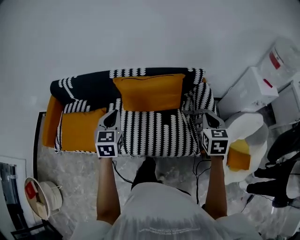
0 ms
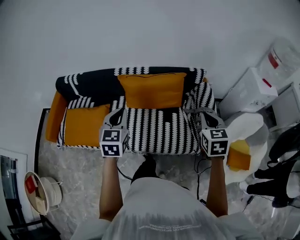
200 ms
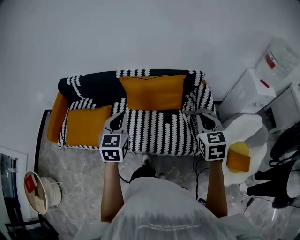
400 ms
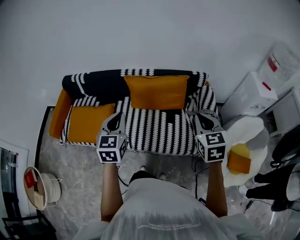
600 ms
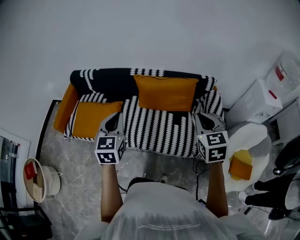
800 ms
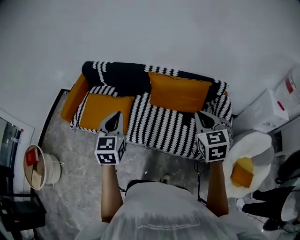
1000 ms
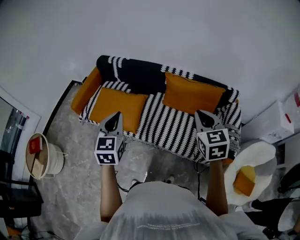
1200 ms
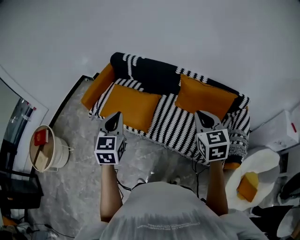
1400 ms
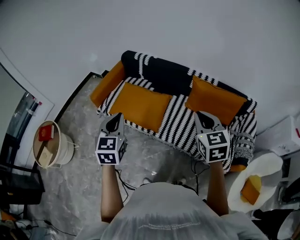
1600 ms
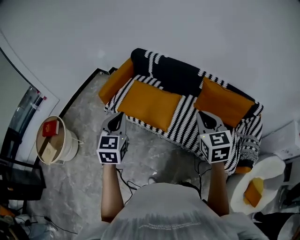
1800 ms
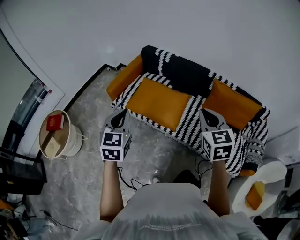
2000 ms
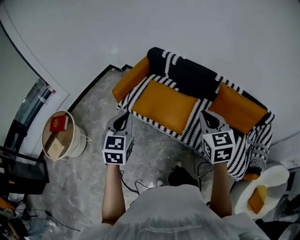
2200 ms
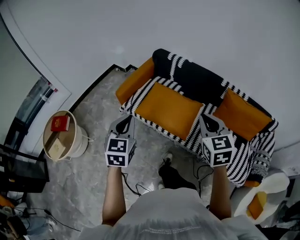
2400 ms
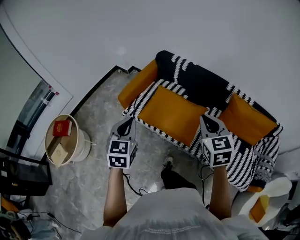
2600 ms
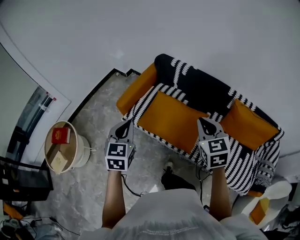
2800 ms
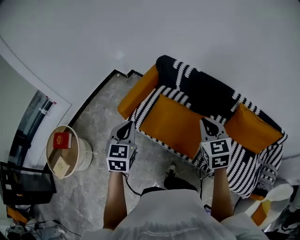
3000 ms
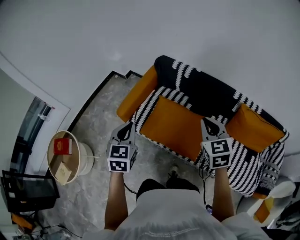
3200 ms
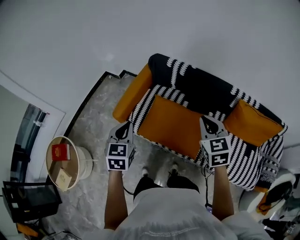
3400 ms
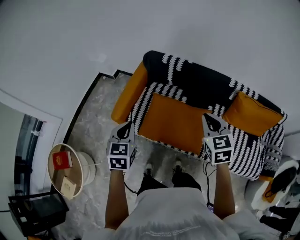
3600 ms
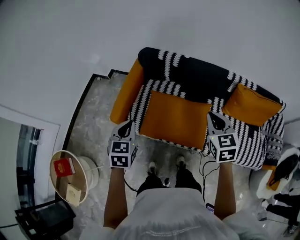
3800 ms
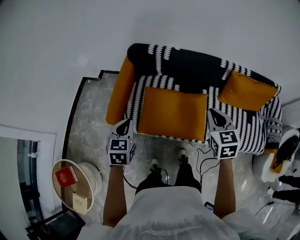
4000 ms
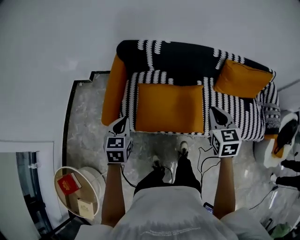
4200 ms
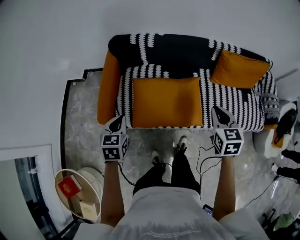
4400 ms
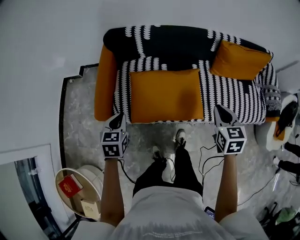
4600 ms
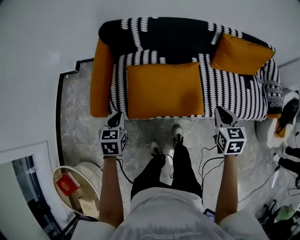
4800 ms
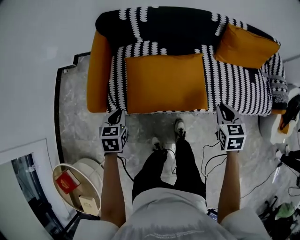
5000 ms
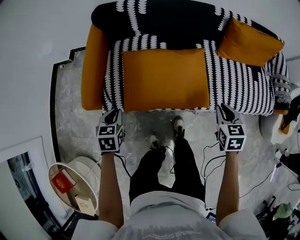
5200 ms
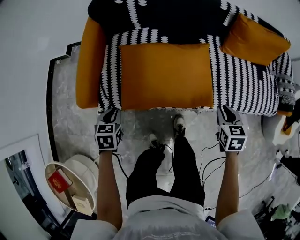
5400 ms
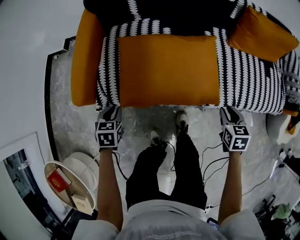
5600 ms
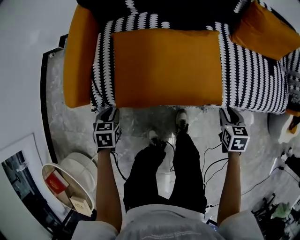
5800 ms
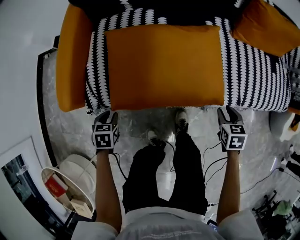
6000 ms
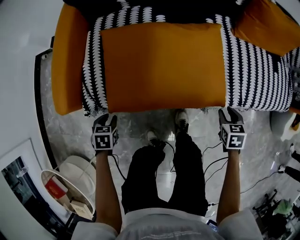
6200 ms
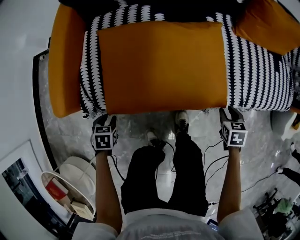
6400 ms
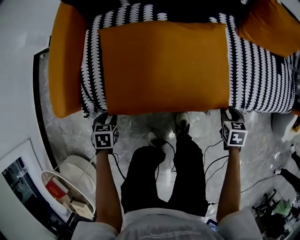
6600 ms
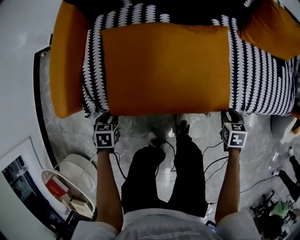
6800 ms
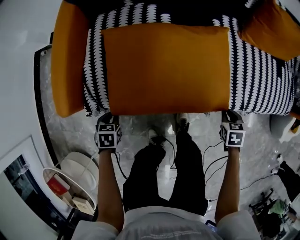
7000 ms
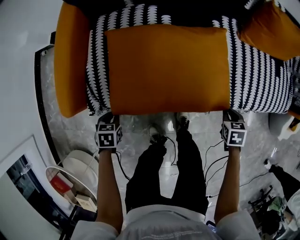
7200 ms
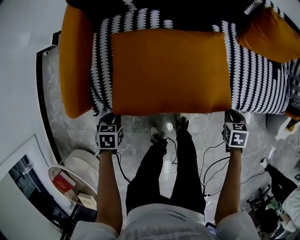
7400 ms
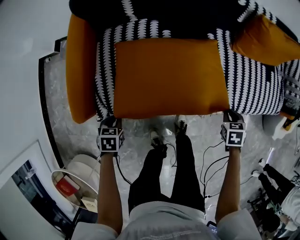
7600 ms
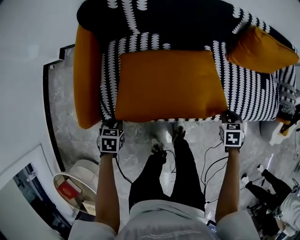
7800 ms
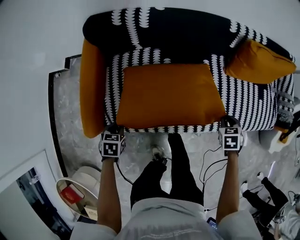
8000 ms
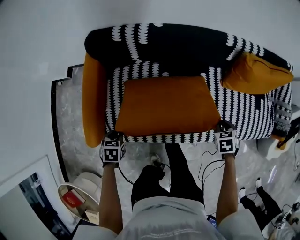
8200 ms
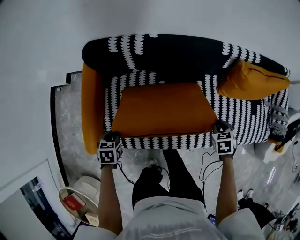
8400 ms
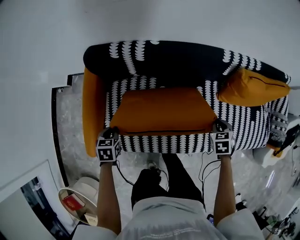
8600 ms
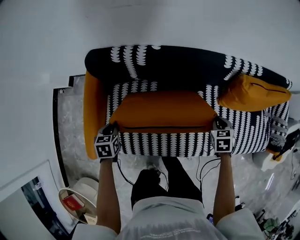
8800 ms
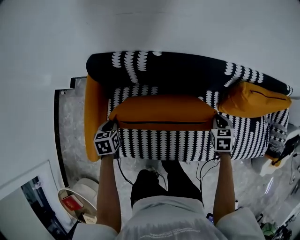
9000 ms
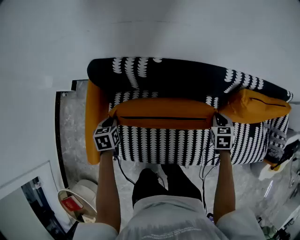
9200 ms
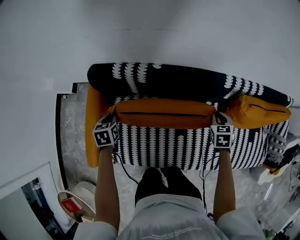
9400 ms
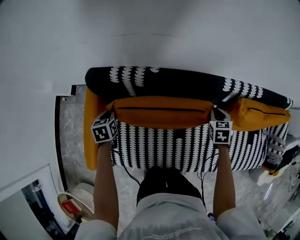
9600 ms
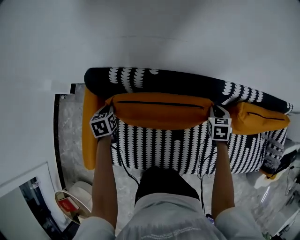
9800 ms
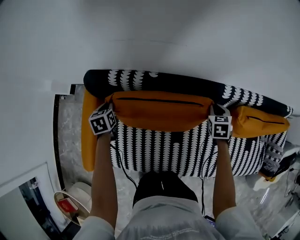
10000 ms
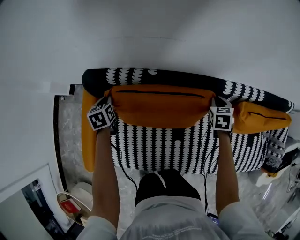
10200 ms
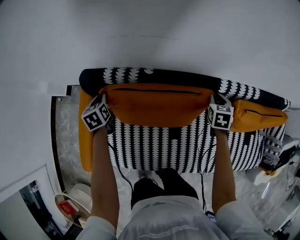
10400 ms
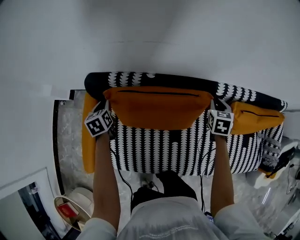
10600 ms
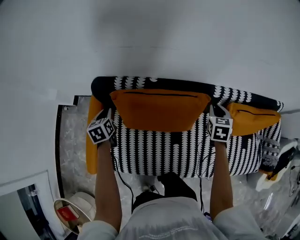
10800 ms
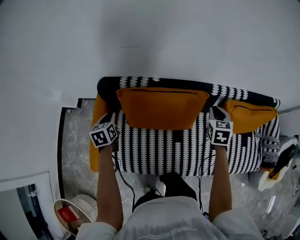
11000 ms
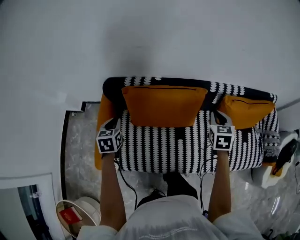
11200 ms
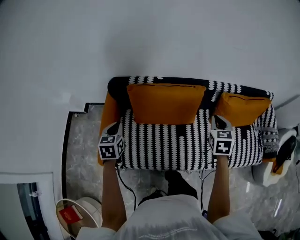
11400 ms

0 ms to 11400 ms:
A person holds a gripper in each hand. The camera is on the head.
0 ms to 1400 ms: The left gripper shifts by approximately 40 cm, and rotates some 20 degrees, while the right gripper moves some 40 cm, and changes its angle by approximately 40 degrees.
1400 ms to 2800 ms: Both grippers travel together to the left and forward, approximately 35 cm.
2800 ms to 4200 ms: The left gripper shifts by roughly 25 cm, and turns by approximately 30 degrees. The right gripper travels downward by approximately 10 cm, and swivels about 30 degrees.
4200 ms to 5600 ms: The grippers both shift downward by approximately 35 cm. The left gripper turns by roughly 20 degrees; the right gripper turns by about 20 degrees, and opens up.
5600 ms to 7200 ms: The two grippers go some 10 cm downward. The right gripper swivels some 20 degrees.
7200 ms to 8600 ms: The left gripper shifts by approximately 30 cm. The right gripper moves about 30 cm.
8600 ms to 10000 ms: Both grippers travel together forward, roughly 25 cm. The left gripper swivels about 20 degrees.
10000 ms to 11400 ms: The right gripper heads upward and backward, covering approximately 35 cm, and swivels roughly 20 degrees. The left gripper heads backward and upward, covering some 30 cm, and rotates approximately 20 degrees.

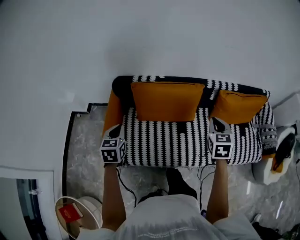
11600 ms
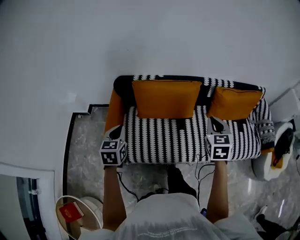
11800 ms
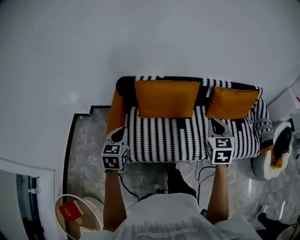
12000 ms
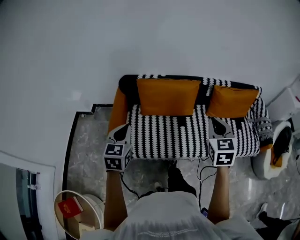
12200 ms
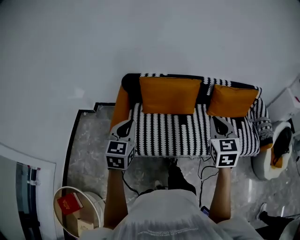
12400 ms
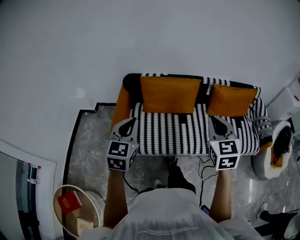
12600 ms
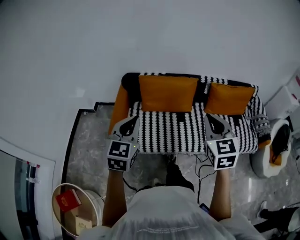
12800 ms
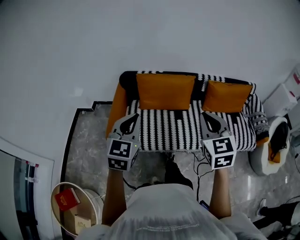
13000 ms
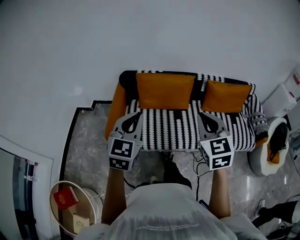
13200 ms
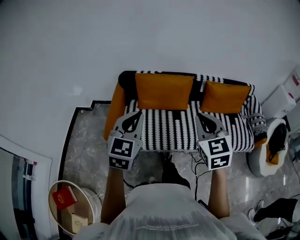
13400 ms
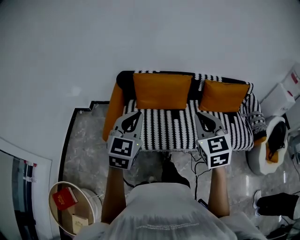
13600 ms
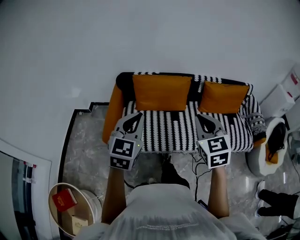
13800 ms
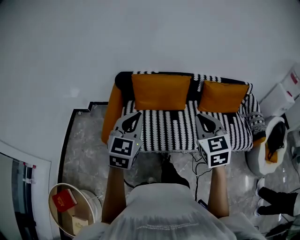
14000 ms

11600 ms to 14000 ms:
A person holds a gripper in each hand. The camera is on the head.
11600 ms to 12800 ms: The left gripper is displaced backward, upward and to the right by approximately 30 cm, and rotates about 30 degrees. The right gripper goes approximately 30 cm backward and upward, and changes its angle by some 20 degrees.
12800 ms to 14000 ms: The left gripper changes place by approximately 5 cm.

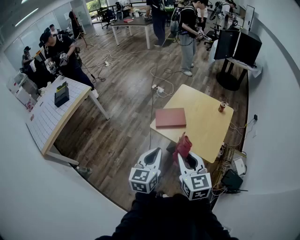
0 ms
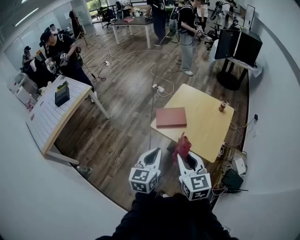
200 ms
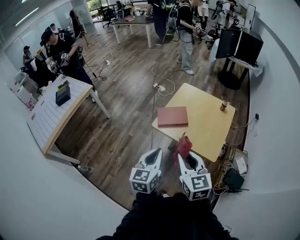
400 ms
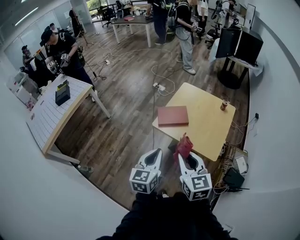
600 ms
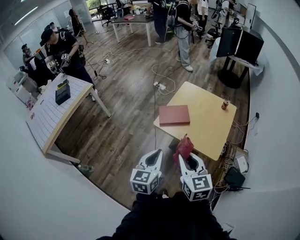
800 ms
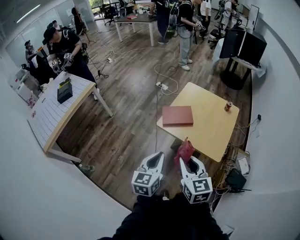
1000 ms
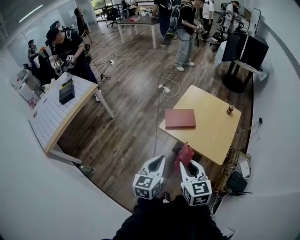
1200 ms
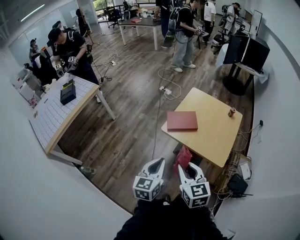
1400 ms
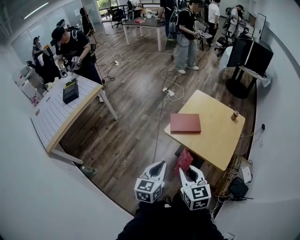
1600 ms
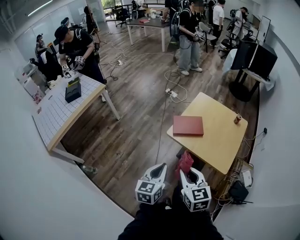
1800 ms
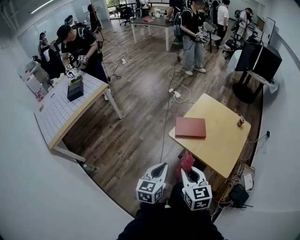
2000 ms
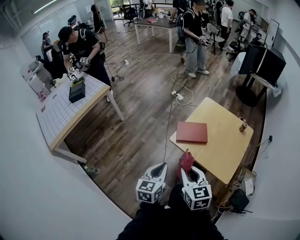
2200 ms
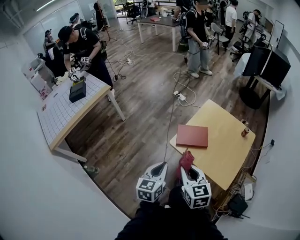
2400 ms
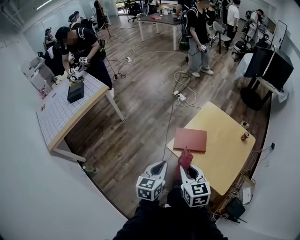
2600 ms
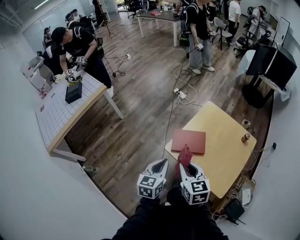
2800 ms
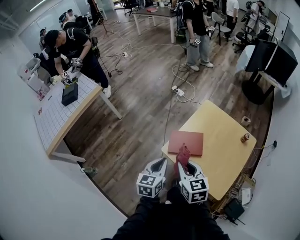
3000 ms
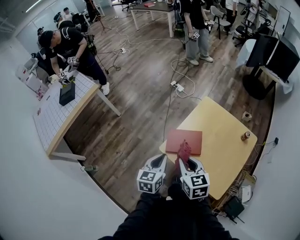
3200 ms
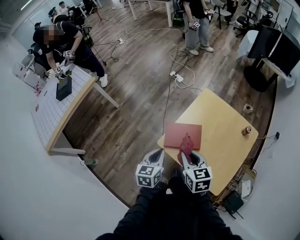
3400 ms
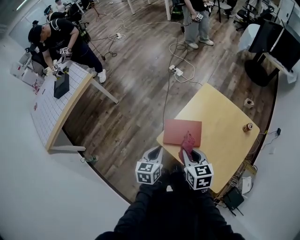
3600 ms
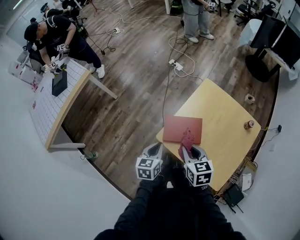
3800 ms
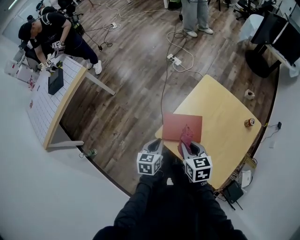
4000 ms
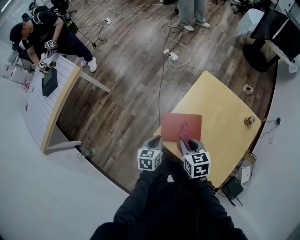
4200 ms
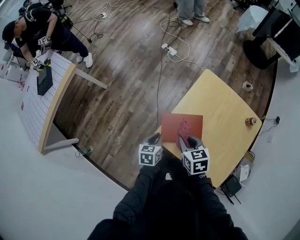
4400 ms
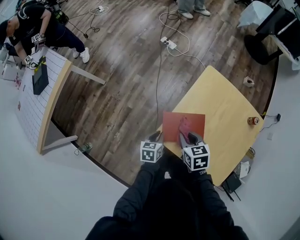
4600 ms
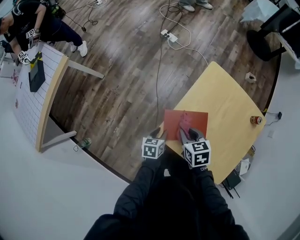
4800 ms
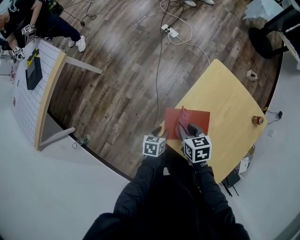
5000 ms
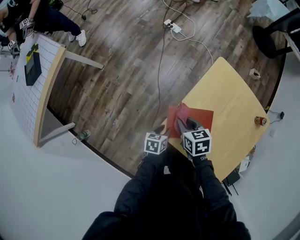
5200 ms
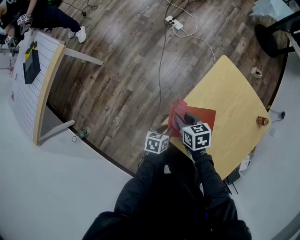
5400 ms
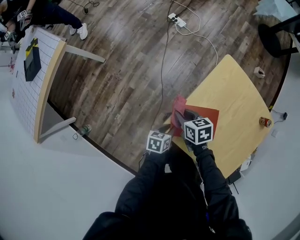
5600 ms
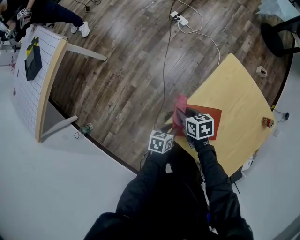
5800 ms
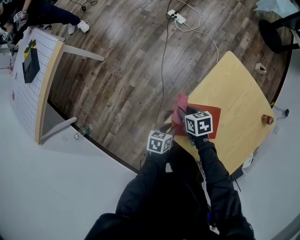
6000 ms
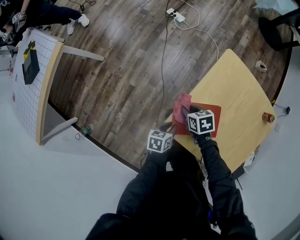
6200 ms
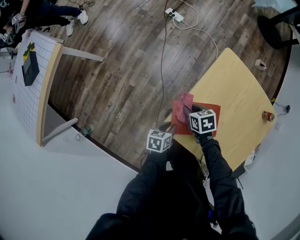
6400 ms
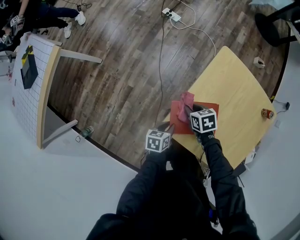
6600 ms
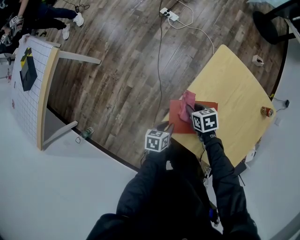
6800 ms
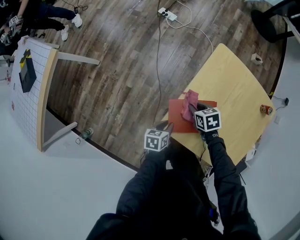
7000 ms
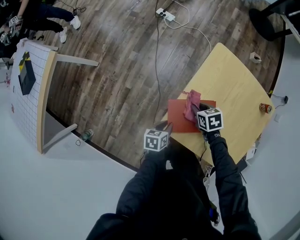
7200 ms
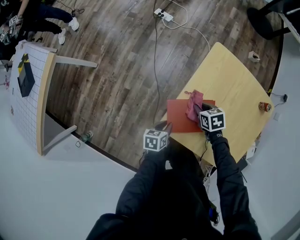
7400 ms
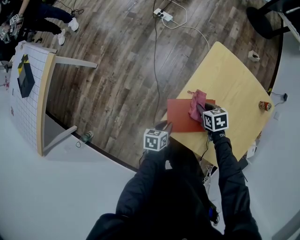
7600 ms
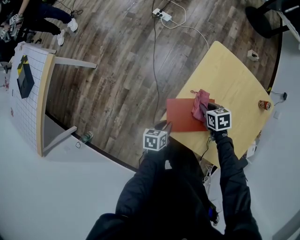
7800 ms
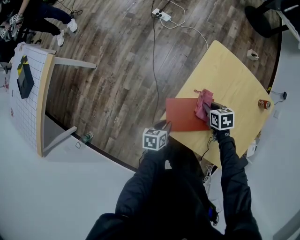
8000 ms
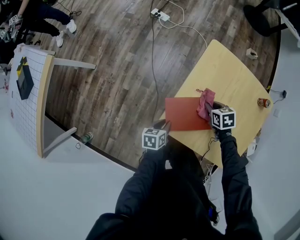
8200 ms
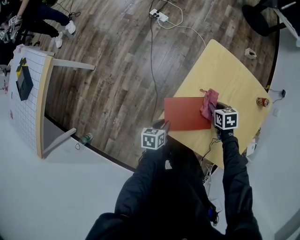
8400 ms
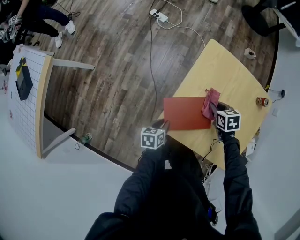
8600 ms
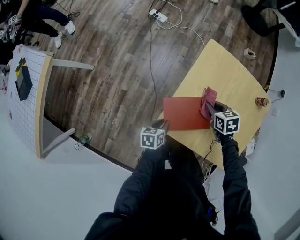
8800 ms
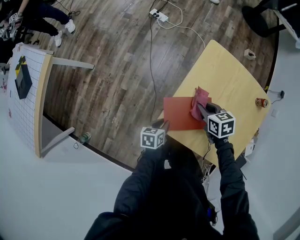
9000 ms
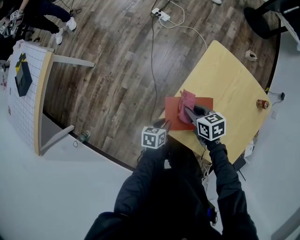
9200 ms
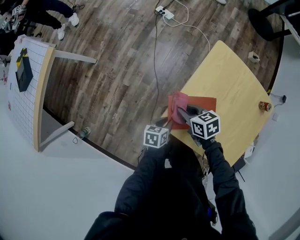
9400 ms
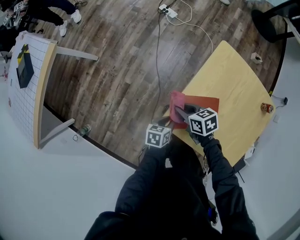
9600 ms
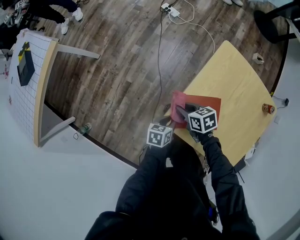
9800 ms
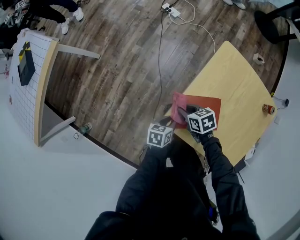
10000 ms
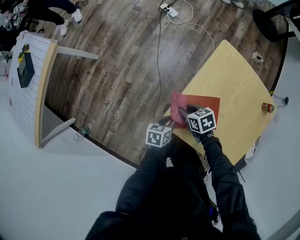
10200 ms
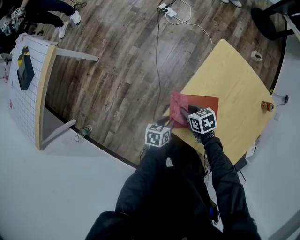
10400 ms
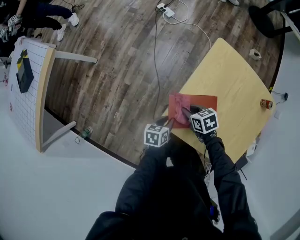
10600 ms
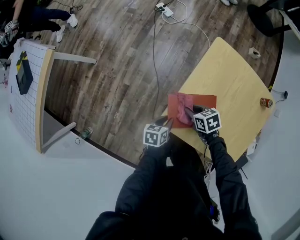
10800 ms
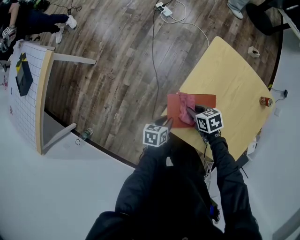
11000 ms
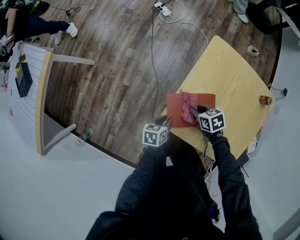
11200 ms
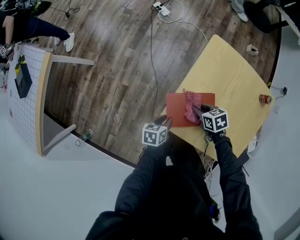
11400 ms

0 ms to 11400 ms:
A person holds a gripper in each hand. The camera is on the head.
0 ms to 1400 ms: The grippers both shift to the left by roughly 10 cm.
1400 ms to 2800 ms: The two grippers go about 20 cm forward.
2800 ms to 4200 ms: The right gripper travels forward, downward and to the right by about 25 cm, while the left gripper goes about 25 cm downward and forward.
4200 ms to 5600 ms: The left gripper shifts approximately 15 cm downward, and changes its angle by roughly 20 degrees. The right gripper is displaced downward, forward and to the left by roughly 25 cm.
5600 ms to 7200 ms: The right gripper travels to the right and downward by approximately 10 cm.
7200 ms to 8600 ms: The right gripper is displaced to the right by some 10 cm.
8600 ms to 10000 ms: The right gripper shifts roughly 20 cm to the left, and rotates some 20 degrees.
10000 ms to 11400 ms: The right gripper is displaced to the right by some 10 cm.
